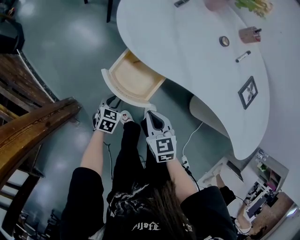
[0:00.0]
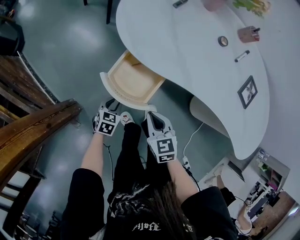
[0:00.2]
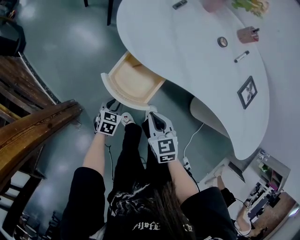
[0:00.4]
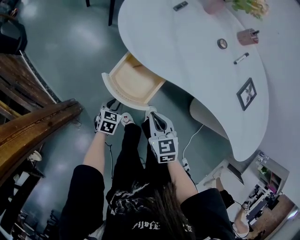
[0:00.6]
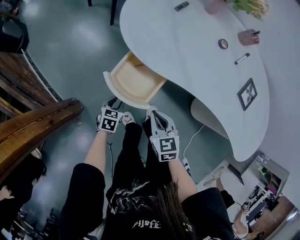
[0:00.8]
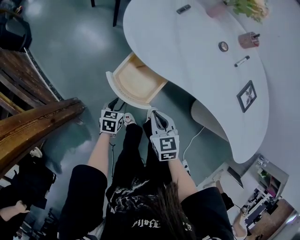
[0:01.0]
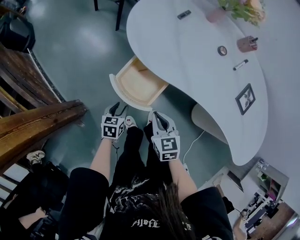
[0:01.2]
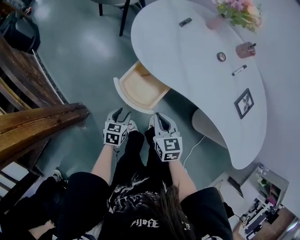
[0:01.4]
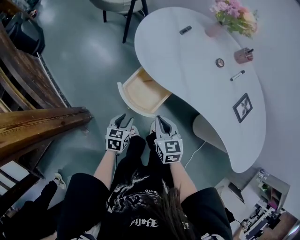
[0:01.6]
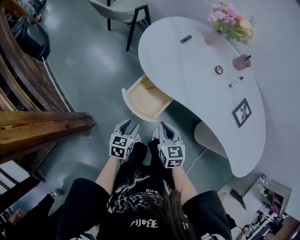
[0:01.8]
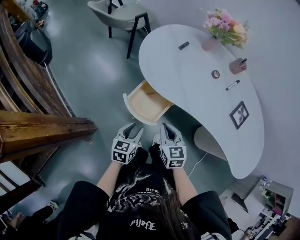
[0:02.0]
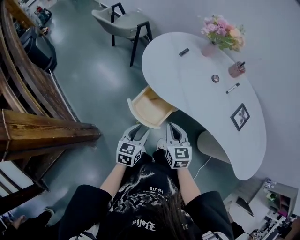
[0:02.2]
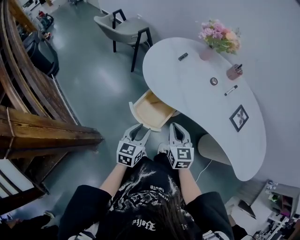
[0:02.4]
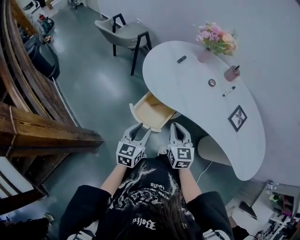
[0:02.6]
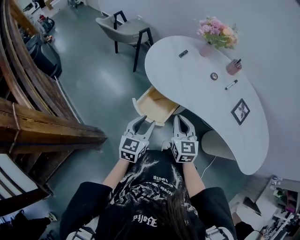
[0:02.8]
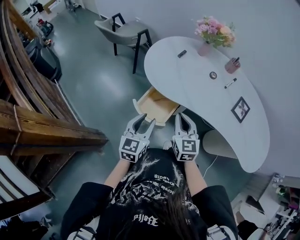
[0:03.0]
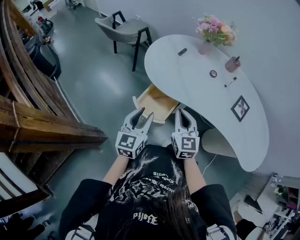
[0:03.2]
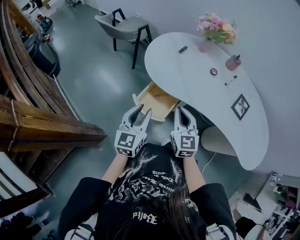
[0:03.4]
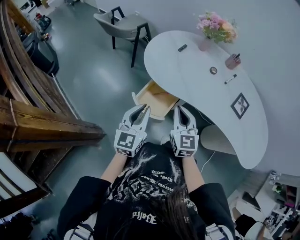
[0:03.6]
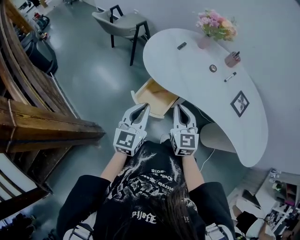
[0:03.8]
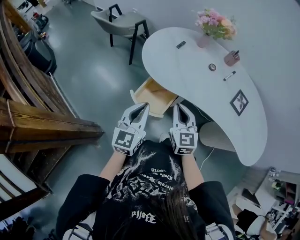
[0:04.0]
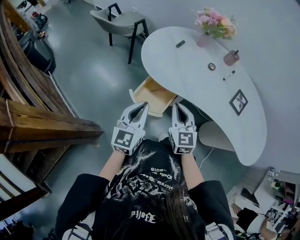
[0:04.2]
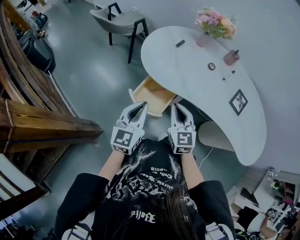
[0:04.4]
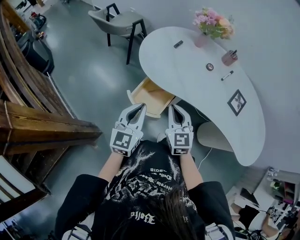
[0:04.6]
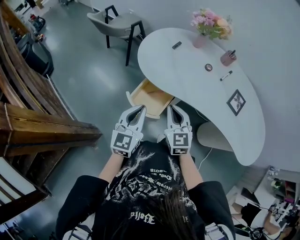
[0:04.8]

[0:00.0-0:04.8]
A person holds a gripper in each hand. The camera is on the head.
0.0 to 1.6 s: The left gripper moves upward, roughly 10 cm. Meanwhile the right gripper travels upward by some 5 cm.
1.6 to 3.2 s: The right gripper travels upward by approximately 15 cm, and swivels approximately 30 degrees, while the left gripper goes approximately 25 cm upward, and points its fingers about 30 degrees further upward.
3.2 to 4.8 s: The left gripper closes its fingers.

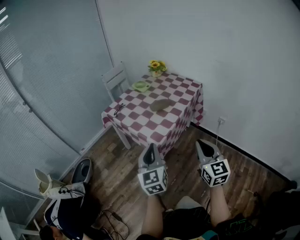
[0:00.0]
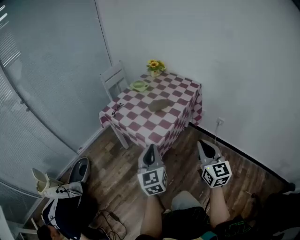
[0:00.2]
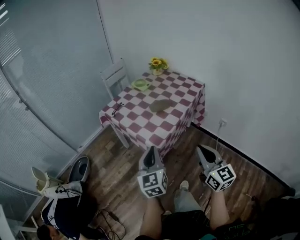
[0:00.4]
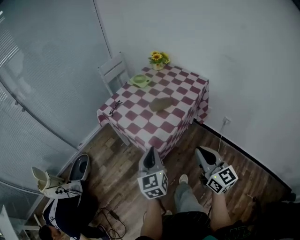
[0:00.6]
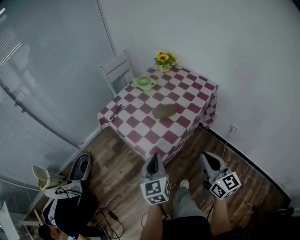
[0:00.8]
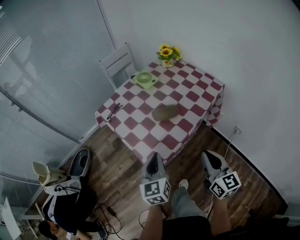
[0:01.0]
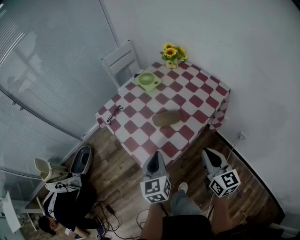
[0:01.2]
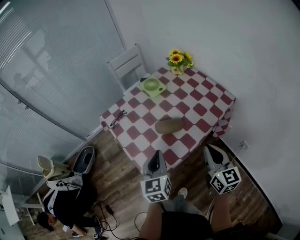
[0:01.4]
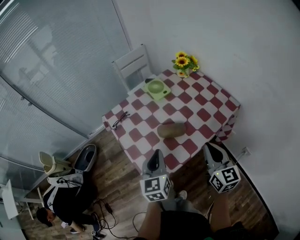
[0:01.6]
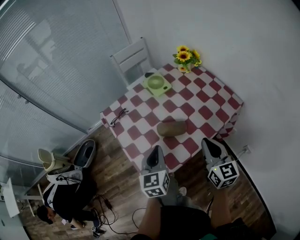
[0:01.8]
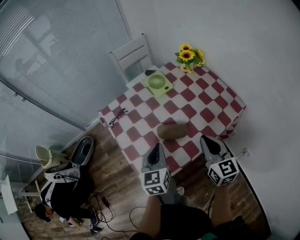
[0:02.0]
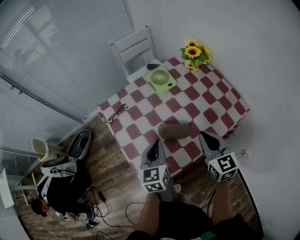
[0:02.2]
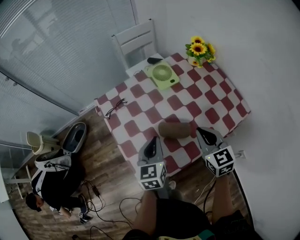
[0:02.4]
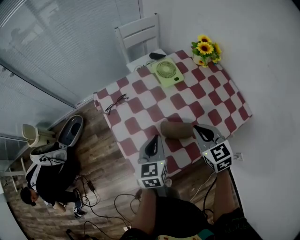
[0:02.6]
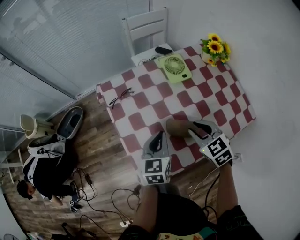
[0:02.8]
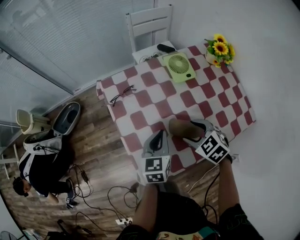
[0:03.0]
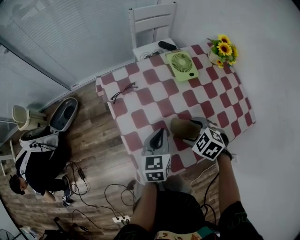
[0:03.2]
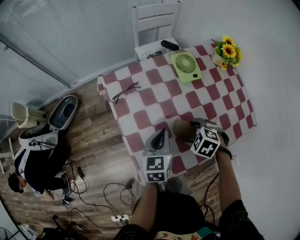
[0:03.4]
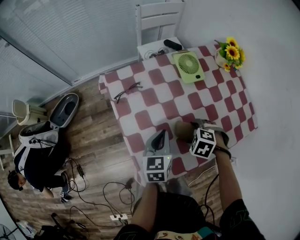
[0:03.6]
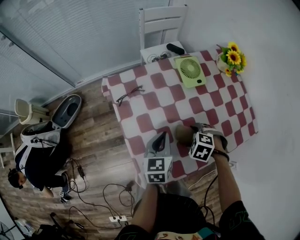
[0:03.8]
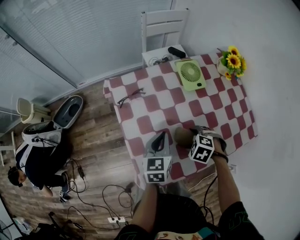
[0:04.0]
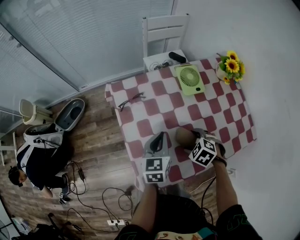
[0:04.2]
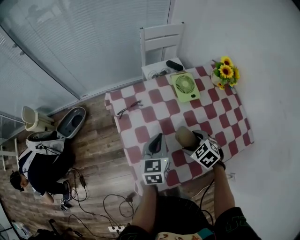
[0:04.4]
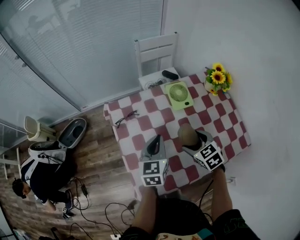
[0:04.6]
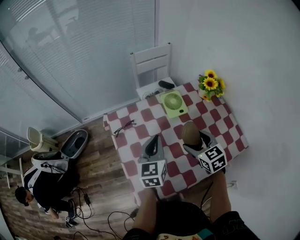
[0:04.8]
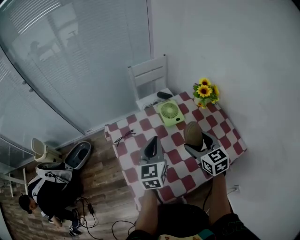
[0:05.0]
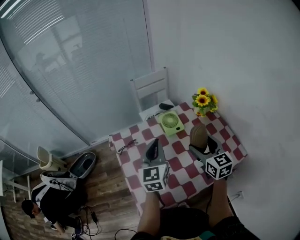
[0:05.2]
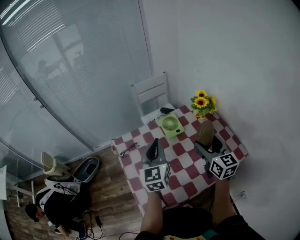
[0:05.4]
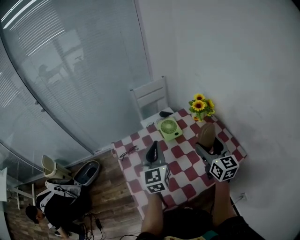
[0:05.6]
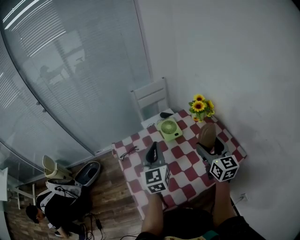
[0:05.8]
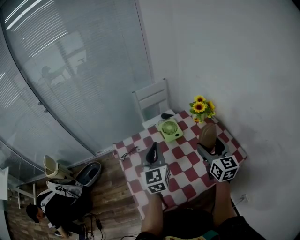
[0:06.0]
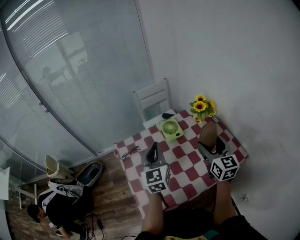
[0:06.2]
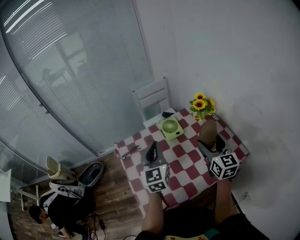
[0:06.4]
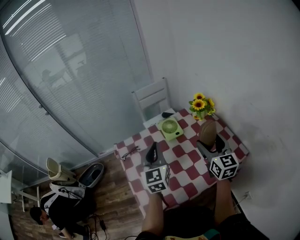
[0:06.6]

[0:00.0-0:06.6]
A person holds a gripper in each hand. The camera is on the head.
0.0 to 1.6 s: Both grippers move forward, about 30 cm. The right gripper swivels roughly 20 degrees.
1.6 to 3.2 s: The right gripper goes about 25 cm downward, forward and to the left, tips its fingers downward by roughly 60 degrees, and opens up; the left gripper goes approximately 15 cm forward and downward.
3.2 to 5.0 s: The two grippers go approximately 15 cm upward. The left gripper swivels some 20 degrees, while the right gripper angles its fingers upward, by approximately 40 degrees.
5.0 to 6.6 s: The right gripper travels to the right and upward by roughly 10 cm, and changes its angle by about 30 degrees. Meanwhile the left gripper is displaced upward by some 5 cm.

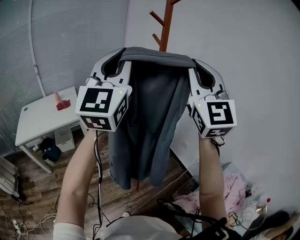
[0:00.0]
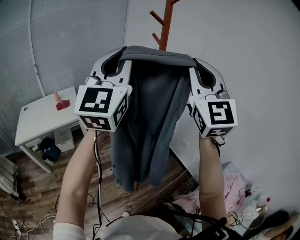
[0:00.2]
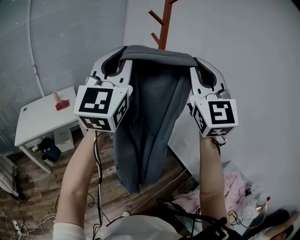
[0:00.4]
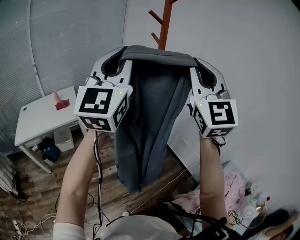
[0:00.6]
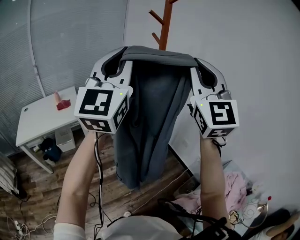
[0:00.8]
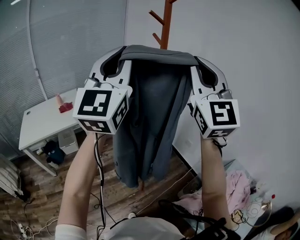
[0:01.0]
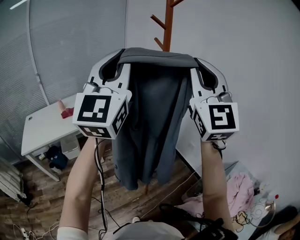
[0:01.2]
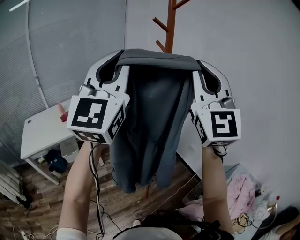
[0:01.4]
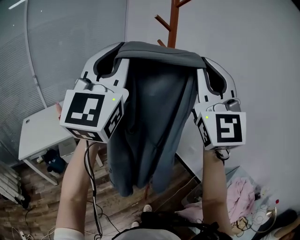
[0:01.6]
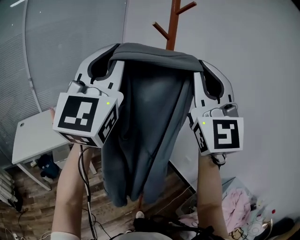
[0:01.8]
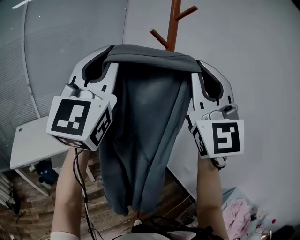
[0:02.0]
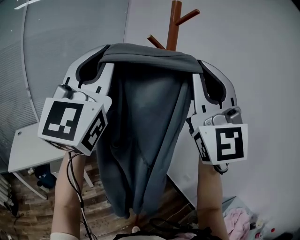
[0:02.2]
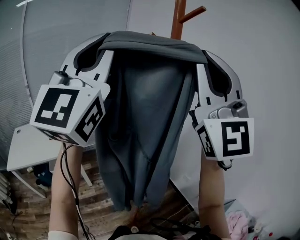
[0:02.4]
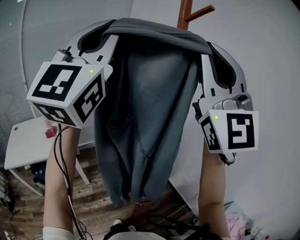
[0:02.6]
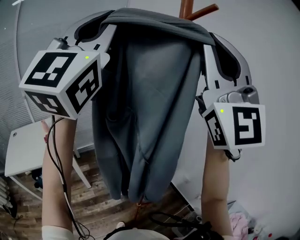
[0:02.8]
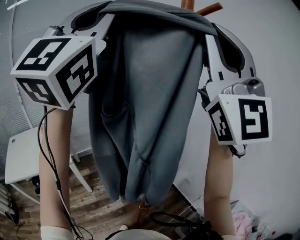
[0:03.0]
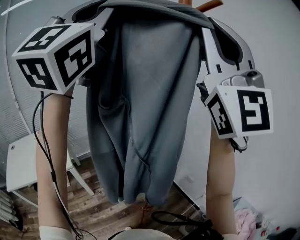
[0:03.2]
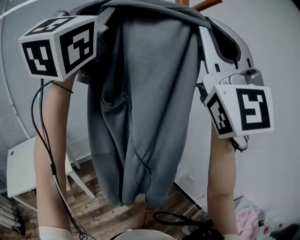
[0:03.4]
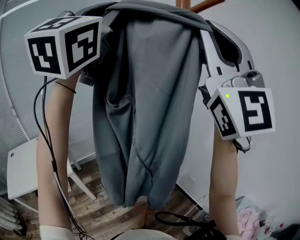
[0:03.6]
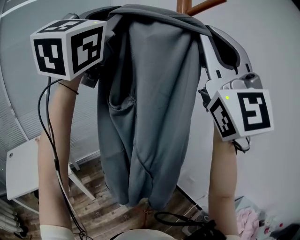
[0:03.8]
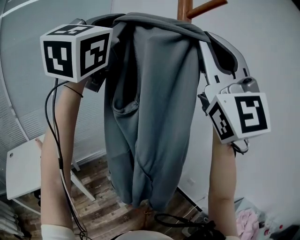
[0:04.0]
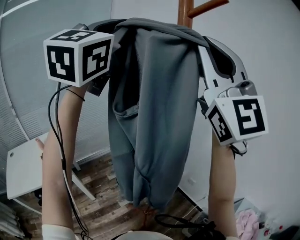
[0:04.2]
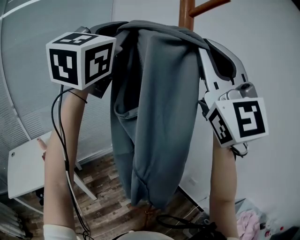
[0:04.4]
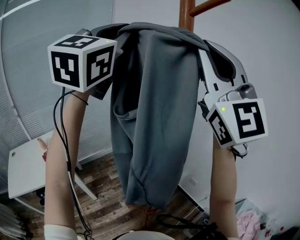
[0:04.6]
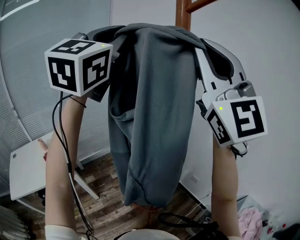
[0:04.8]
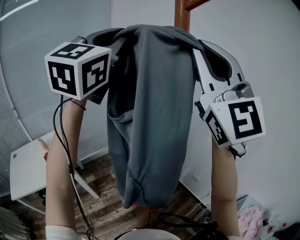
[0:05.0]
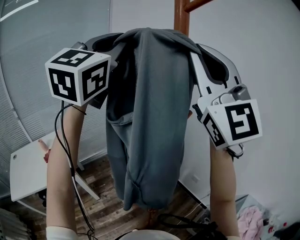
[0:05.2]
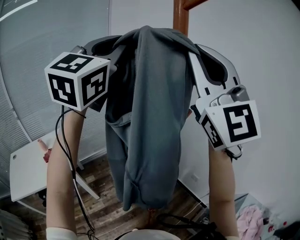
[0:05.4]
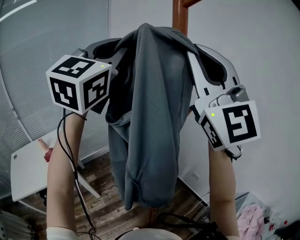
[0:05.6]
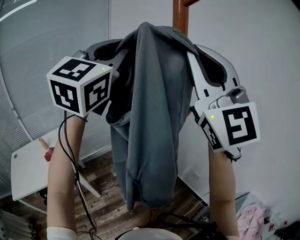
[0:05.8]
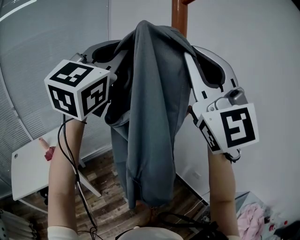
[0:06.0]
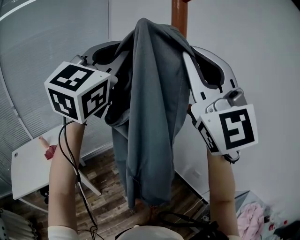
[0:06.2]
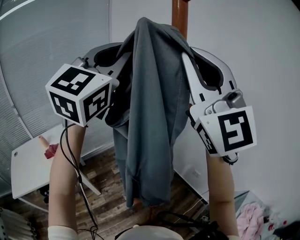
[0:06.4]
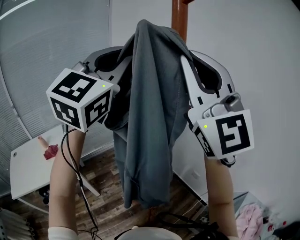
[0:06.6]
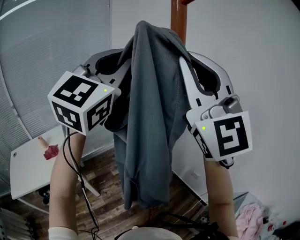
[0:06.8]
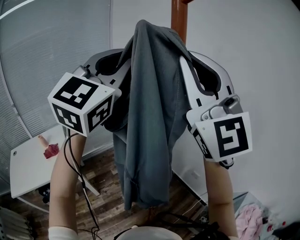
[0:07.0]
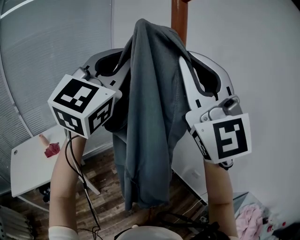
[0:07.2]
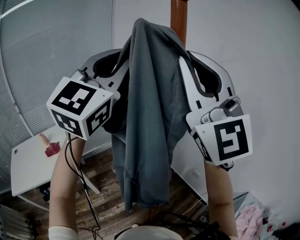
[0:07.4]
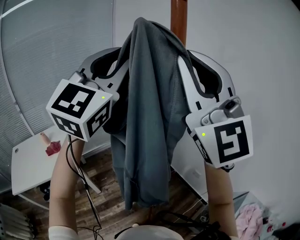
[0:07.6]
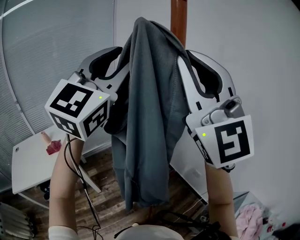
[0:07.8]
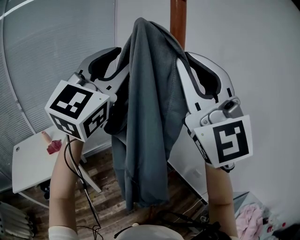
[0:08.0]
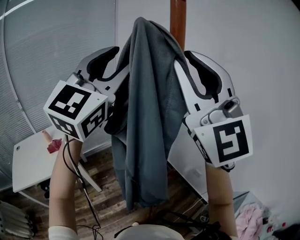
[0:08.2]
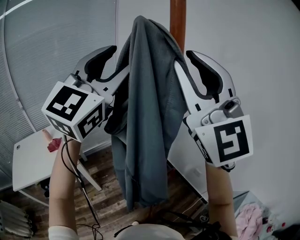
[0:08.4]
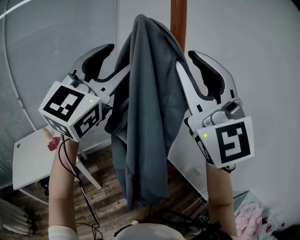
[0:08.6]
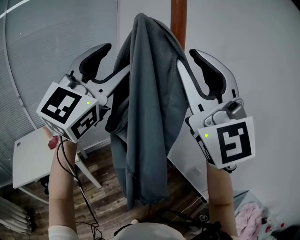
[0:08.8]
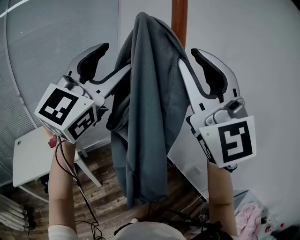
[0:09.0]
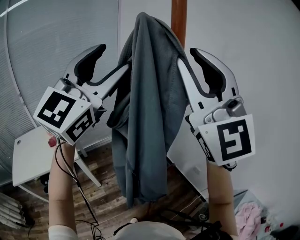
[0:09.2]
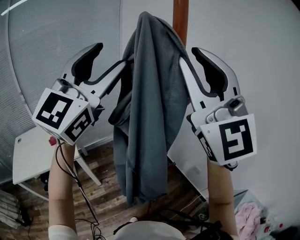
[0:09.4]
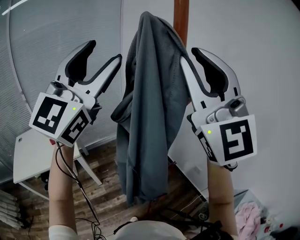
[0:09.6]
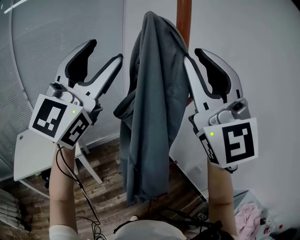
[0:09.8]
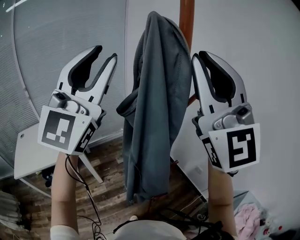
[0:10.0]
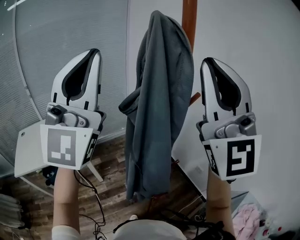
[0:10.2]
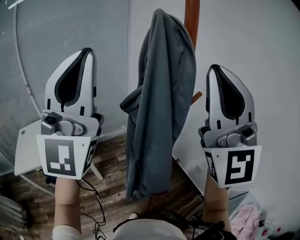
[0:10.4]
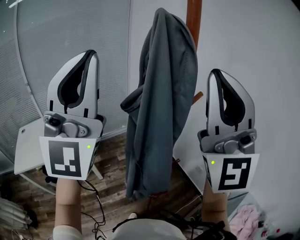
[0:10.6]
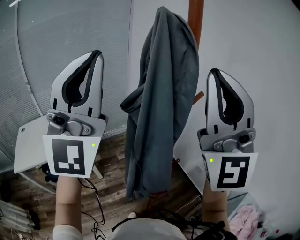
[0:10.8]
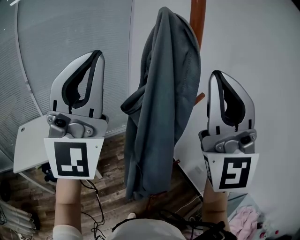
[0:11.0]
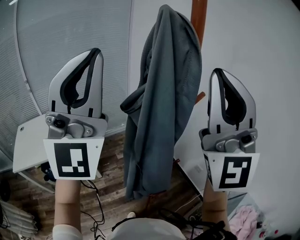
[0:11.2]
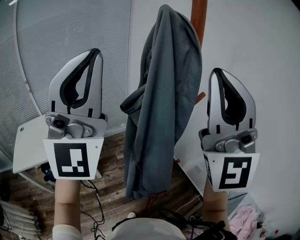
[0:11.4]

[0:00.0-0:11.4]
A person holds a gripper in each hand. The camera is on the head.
0.0 to 1.4 s: The grippers move only a little.
1.4 to 2.8 s: The left gripper goes roughly 20 cm forward and upward, while the right gripper goes some 15 cm upward and forward.
2.8 to 4.2 s: The right gripper shifts about 10 cm forward, while the left gripper shifts some 15 cm forward.
4.2 to 5.6 s: The left gripper shifts some 5 cm downward.
5.6 to 7.2 s: The left gripper shifts by roughly 5 cm.
7.2 to 8.6 s: The left gripper opens its fingers.
8.6 to 10.0 s: The left gripper heads backward, covering approximately 5 cm, and closes up.
10.0 to 11.4 s: The left gripper closes.

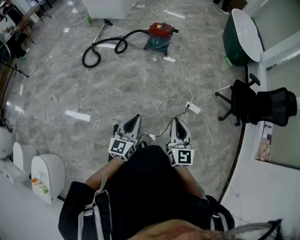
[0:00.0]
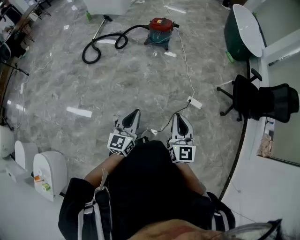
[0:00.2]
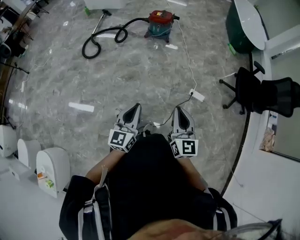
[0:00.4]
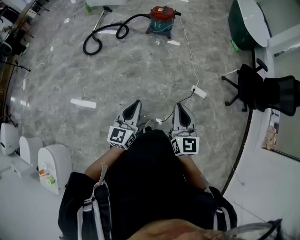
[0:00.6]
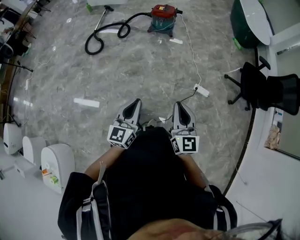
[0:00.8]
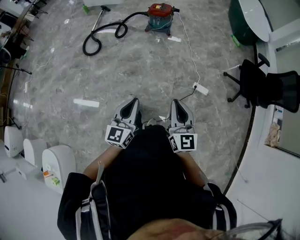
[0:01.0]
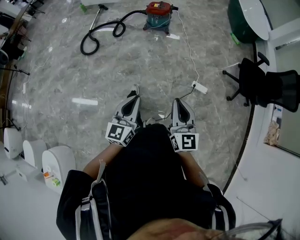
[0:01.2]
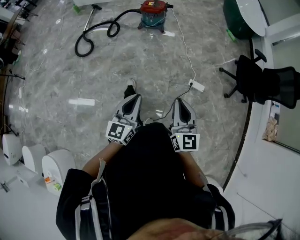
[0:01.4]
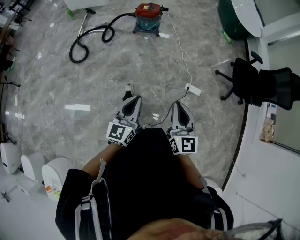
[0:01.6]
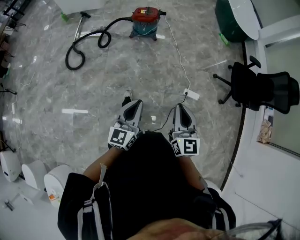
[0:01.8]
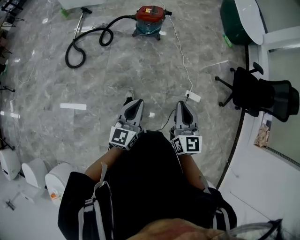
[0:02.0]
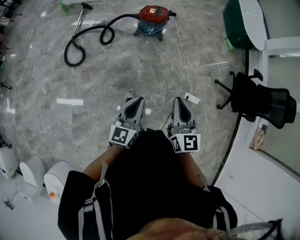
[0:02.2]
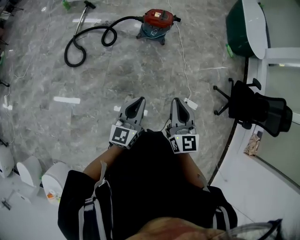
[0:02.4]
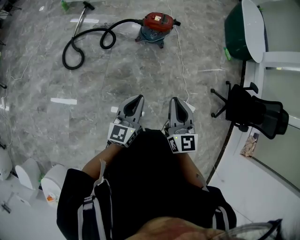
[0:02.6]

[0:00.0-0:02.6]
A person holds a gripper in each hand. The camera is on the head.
0.0 to 1.2 s: The left gripper travels forward by approximately 5 cm, while the right gripper moves roughly 5 cm.
1.2 to 2.6 s: The pair of grippers is taken forward and to the left, some 40 cm.
